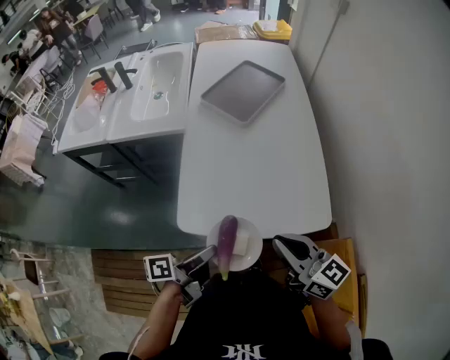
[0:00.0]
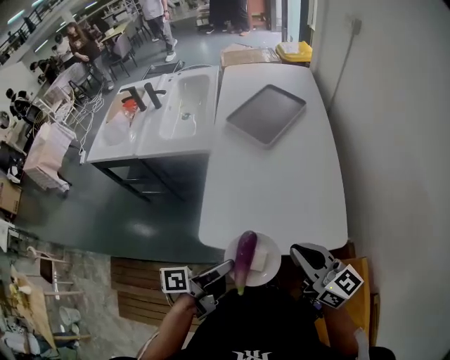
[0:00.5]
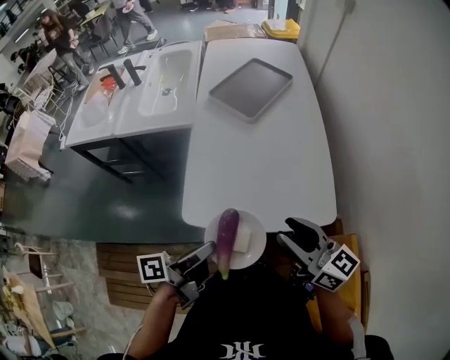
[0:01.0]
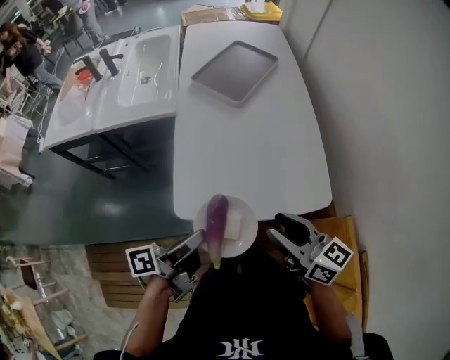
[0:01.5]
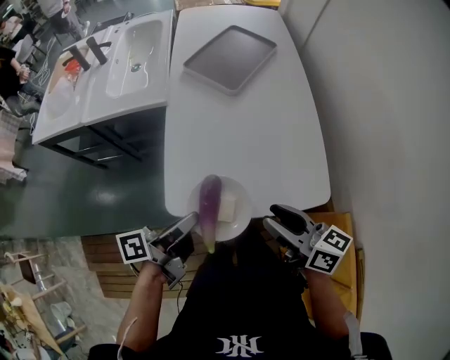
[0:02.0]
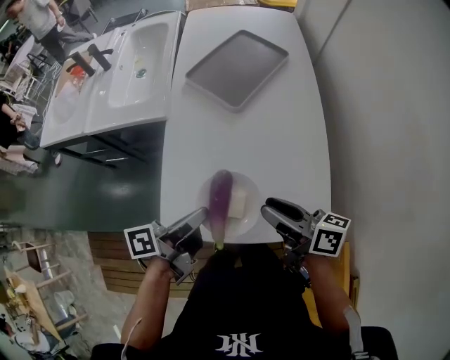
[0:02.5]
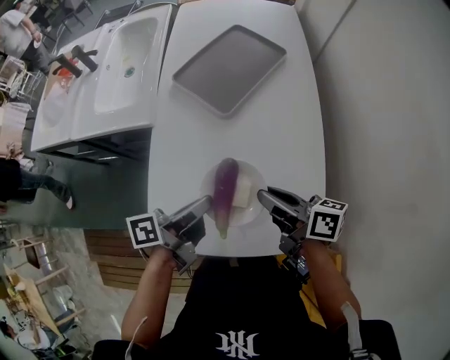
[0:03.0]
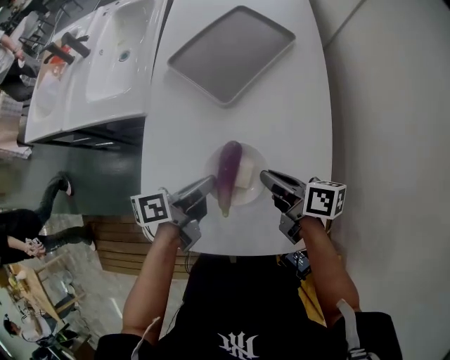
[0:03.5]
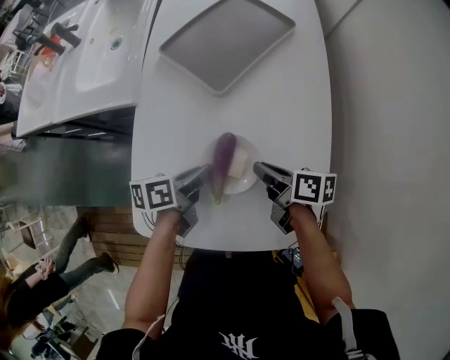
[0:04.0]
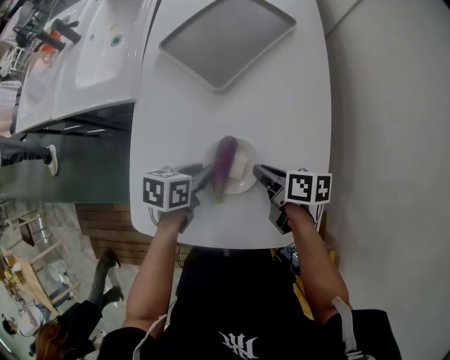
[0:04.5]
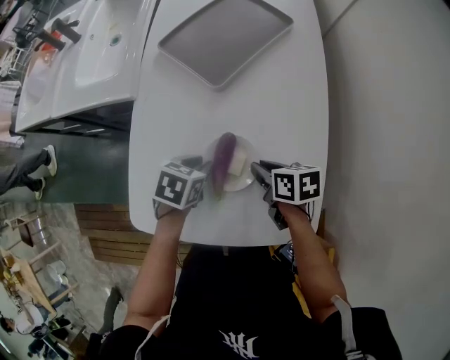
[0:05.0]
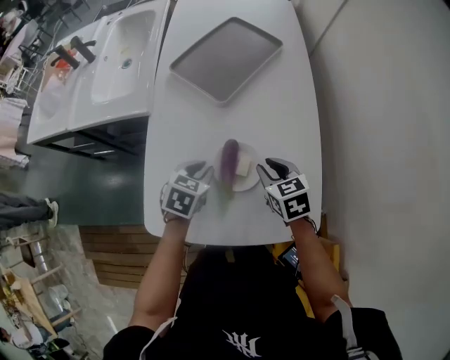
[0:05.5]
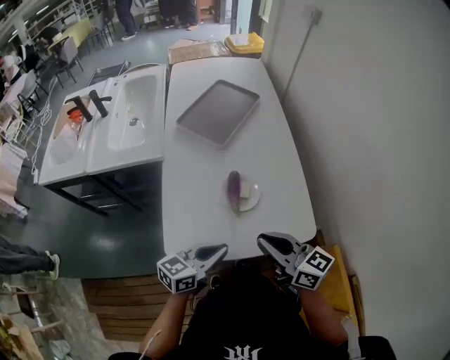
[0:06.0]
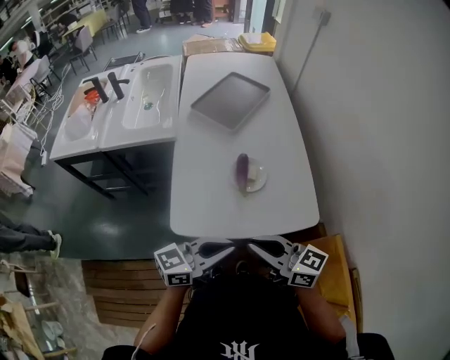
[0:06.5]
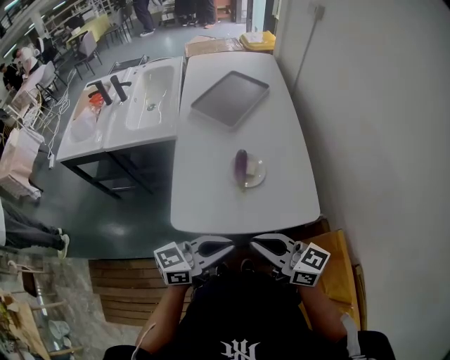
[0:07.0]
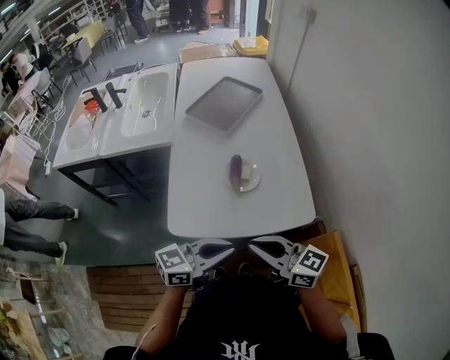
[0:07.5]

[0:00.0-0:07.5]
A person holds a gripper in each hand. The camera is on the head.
0:00.0 to 0:02.0: The right gripper rotates about 20 degrees, and opens; the left gripper shifts by approximately 5 cm.
0:02.0 to 0:04.0: The left gripper is displaced forward, downward and to the right by some 30 cm, and swivels some 30 degrees. Meanwhile the right gripper is displaced forward and downward by about 30 cm, turns by some 30 degrees, and closes its fingers.
0:04.0 to 0:05.5: The right gripper twists some 50 degrees counterclockwise, seen from behind. Meanwhile the left gripper rolls clockwise, seen from behind, by about 50 degrees.
0:05.5 to 0:07.5: The right gripper changes place by some 35 cm, points its fingers some 40 degrees further upward, and closes up. The left gripper shifts by about 35 cm, and tips its fingers upward by some 50 degrees.

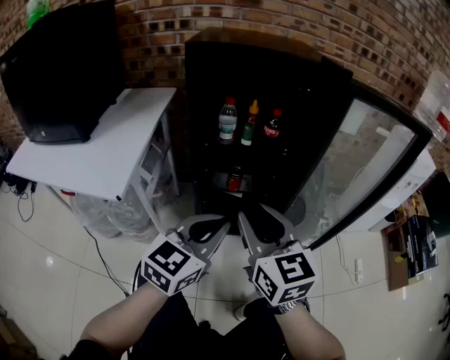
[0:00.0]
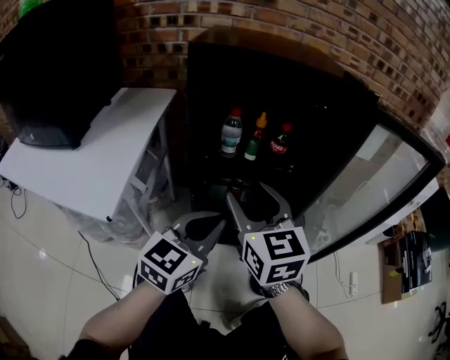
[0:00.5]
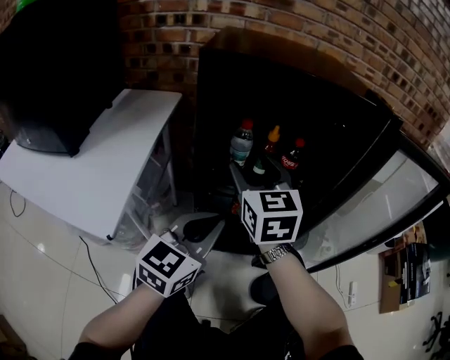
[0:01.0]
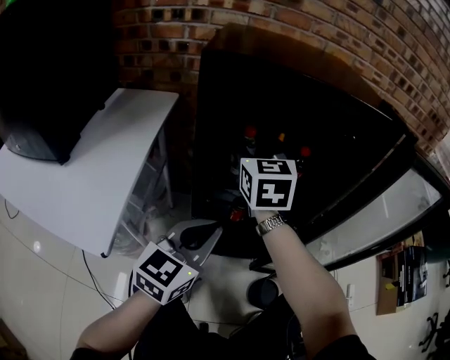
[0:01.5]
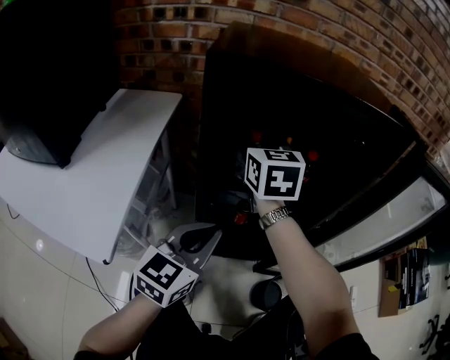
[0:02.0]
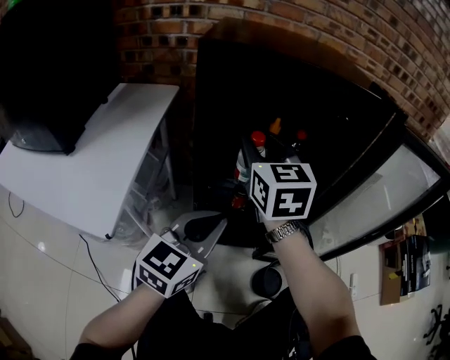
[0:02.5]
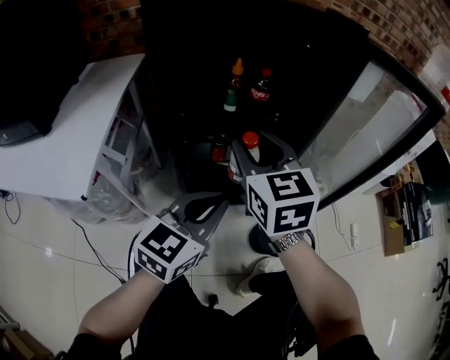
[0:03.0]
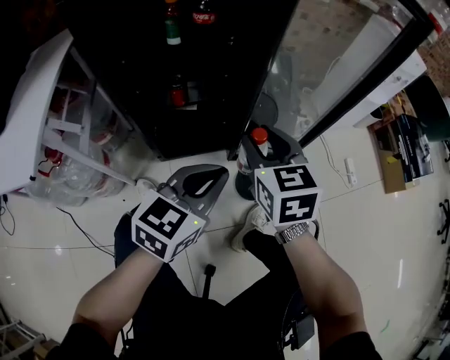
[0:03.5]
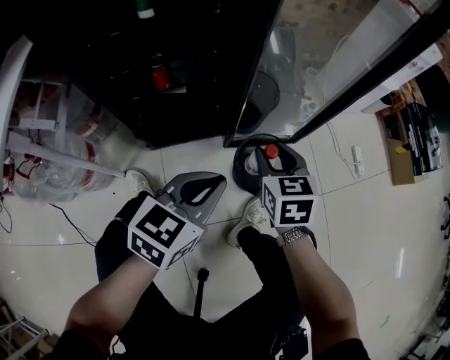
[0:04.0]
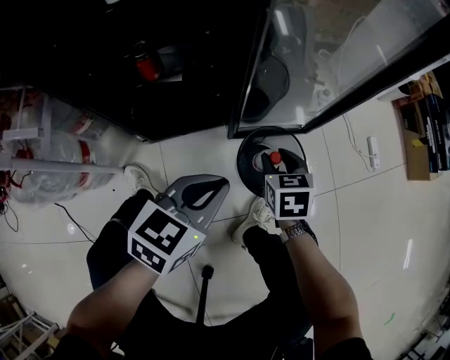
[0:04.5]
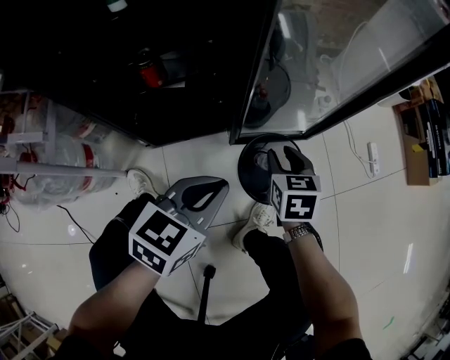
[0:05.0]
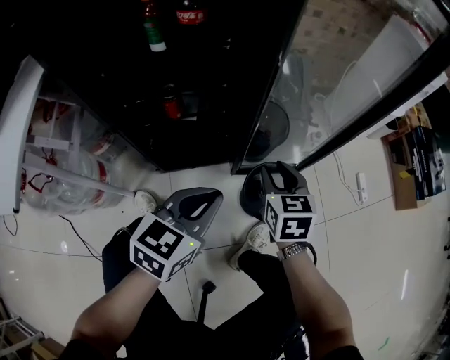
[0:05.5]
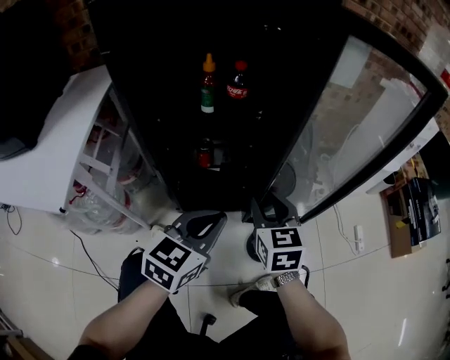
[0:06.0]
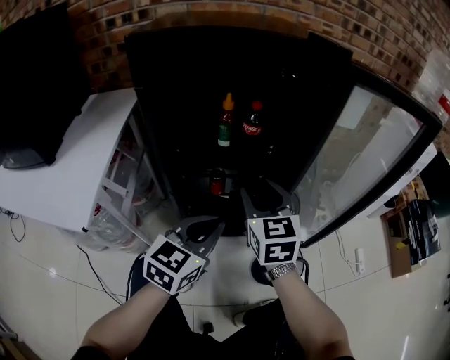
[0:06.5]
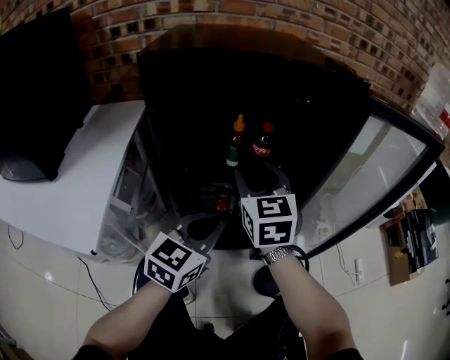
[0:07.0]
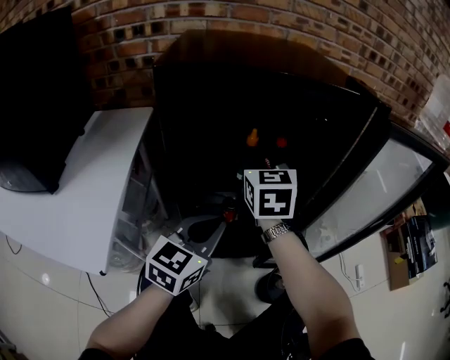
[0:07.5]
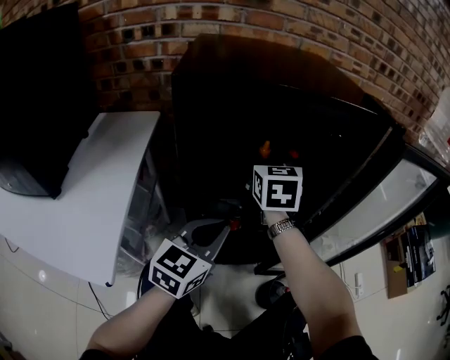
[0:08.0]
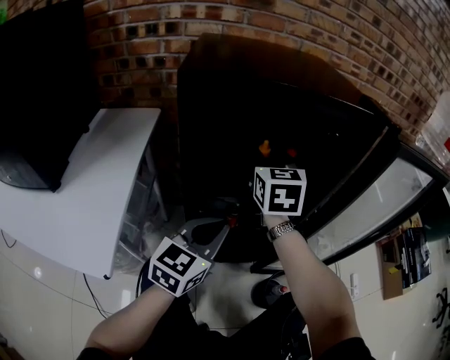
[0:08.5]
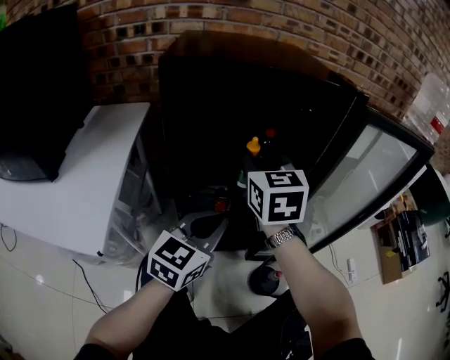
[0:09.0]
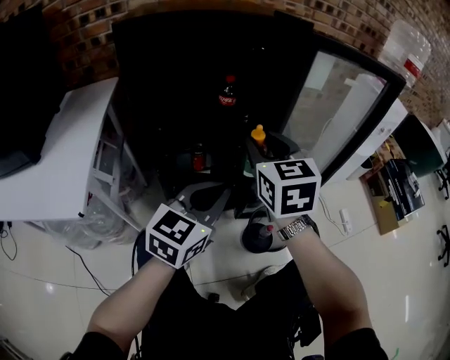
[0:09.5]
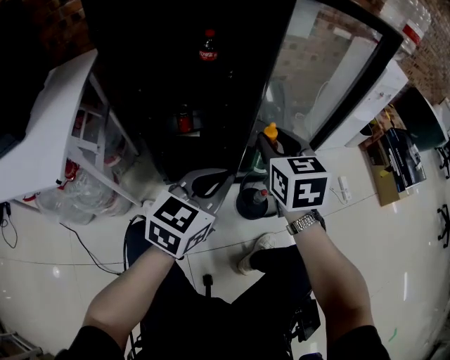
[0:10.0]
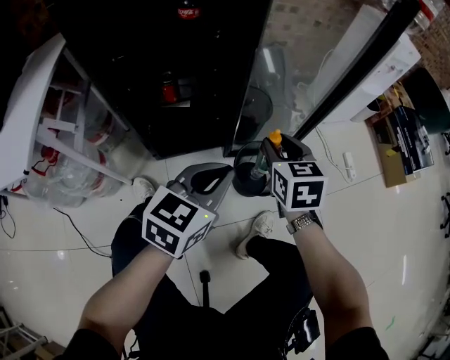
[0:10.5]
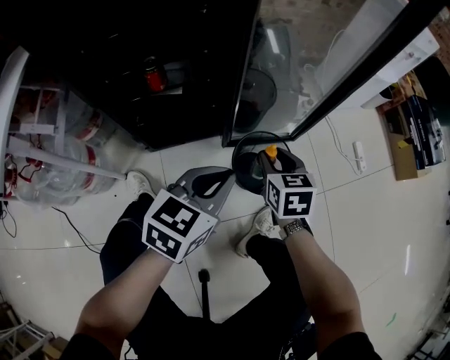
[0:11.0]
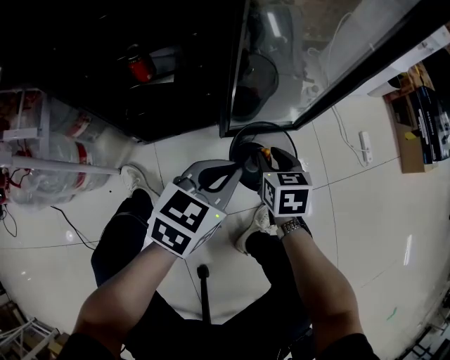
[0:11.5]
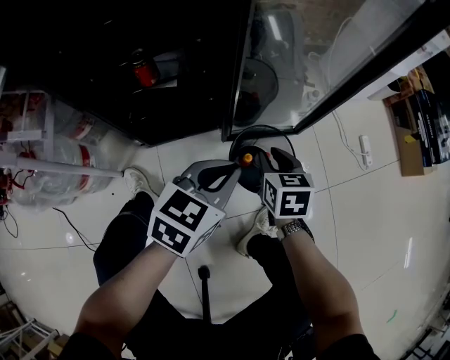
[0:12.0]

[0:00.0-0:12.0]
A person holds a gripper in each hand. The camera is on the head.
0:00.0 to 0:02.0: The left gripper heads forward and to the left, covering some 20 cm, while the right gripper goes about 35 cm forward.
0:02.0 to 0:04.0: The left gripper shifts roughly 30 cm to the right and downward, and rotates about 30 degrees. Meanwhile the right gripper moves to the right, downward and backward, roughly 60 cm, and rotates roughly 30 degrees.
0:04.0 to 0:06.0: The two grippers go some 15 cm upward and to the left.
0:06.0 to 0:08.0: The left gripper moves to the left, forward and upward, approximately 20 cm. The right gripper moves forward, to the left and upward, some 35 cm.
0:08.0 to 0:10.0: Both grippers move to the right and backward, some 30 cm.
0:10.0 to 0:12.0: The left gripper goes some 20 cm downward; the right gripper moves downward, approximately 30 cm, and changes its angle by approximately 20 degrees.

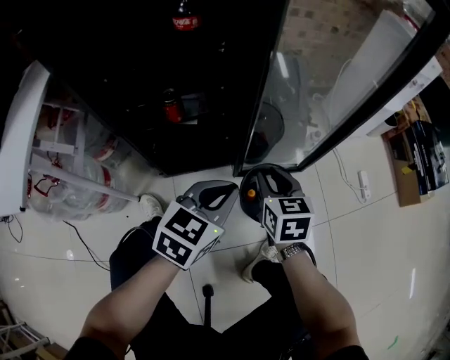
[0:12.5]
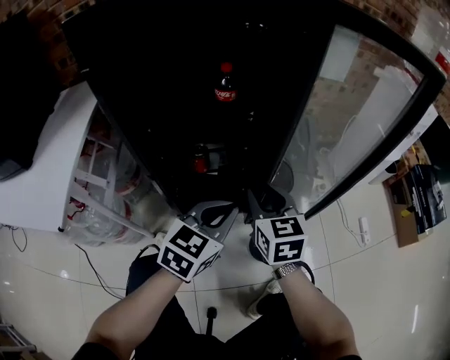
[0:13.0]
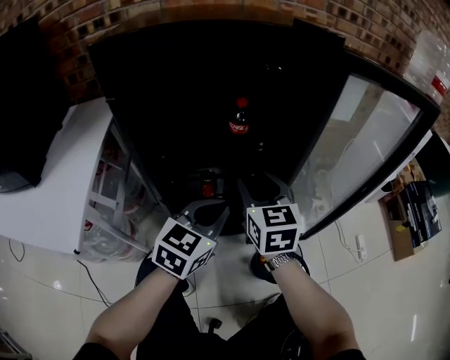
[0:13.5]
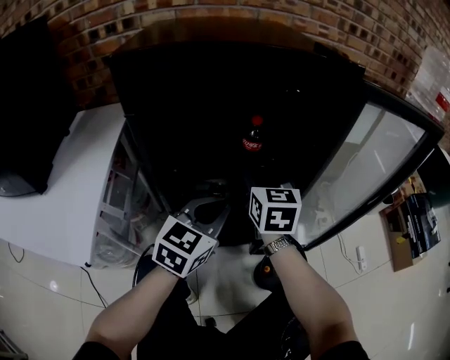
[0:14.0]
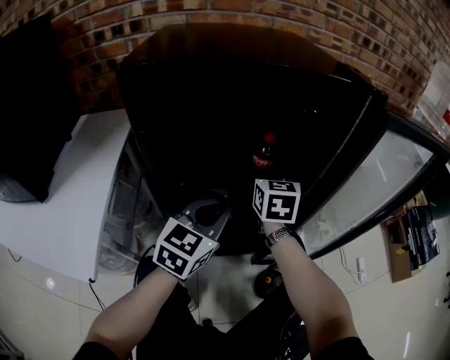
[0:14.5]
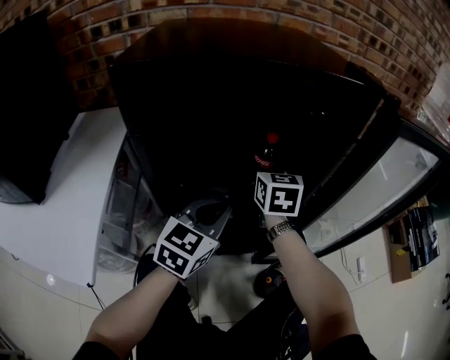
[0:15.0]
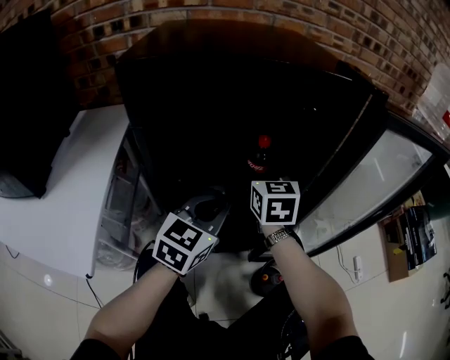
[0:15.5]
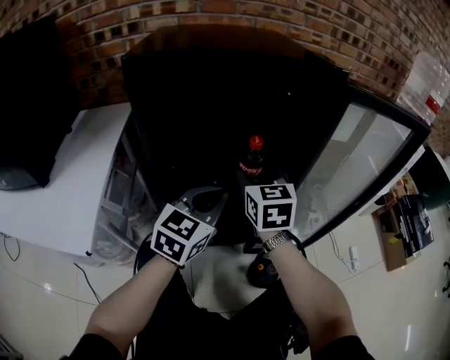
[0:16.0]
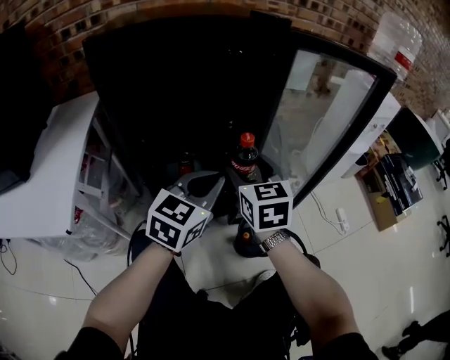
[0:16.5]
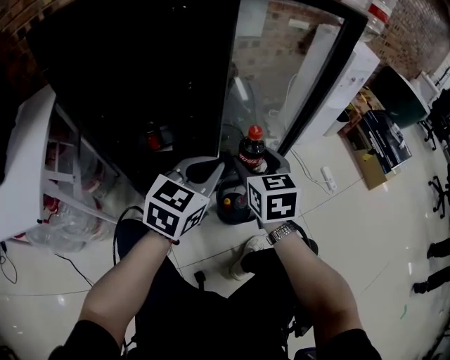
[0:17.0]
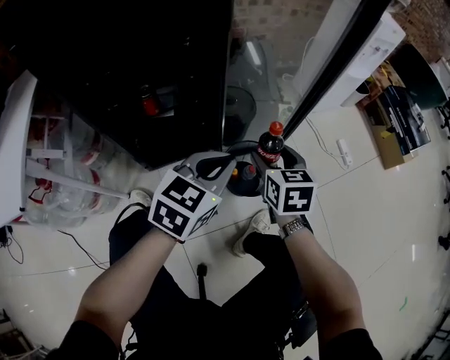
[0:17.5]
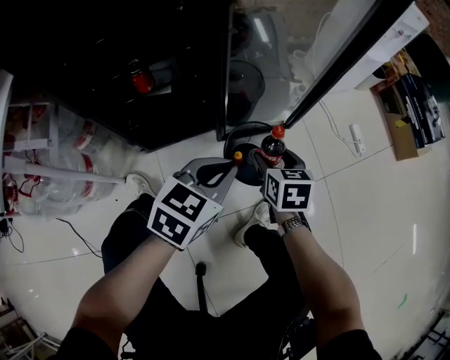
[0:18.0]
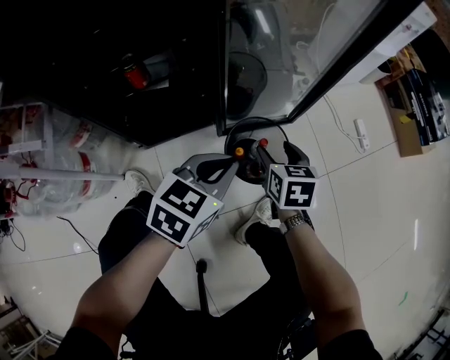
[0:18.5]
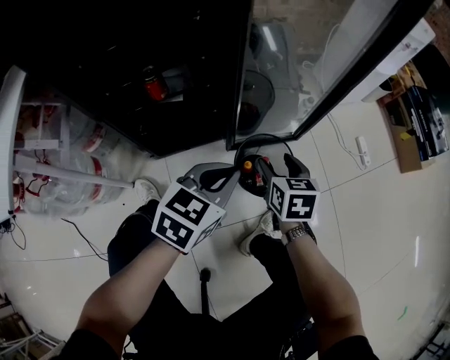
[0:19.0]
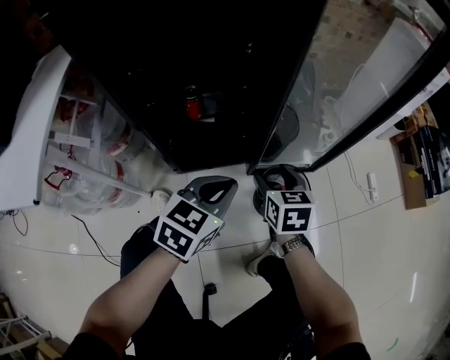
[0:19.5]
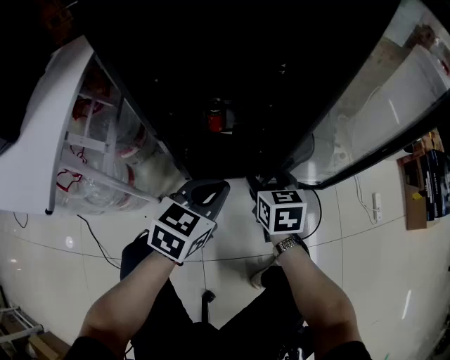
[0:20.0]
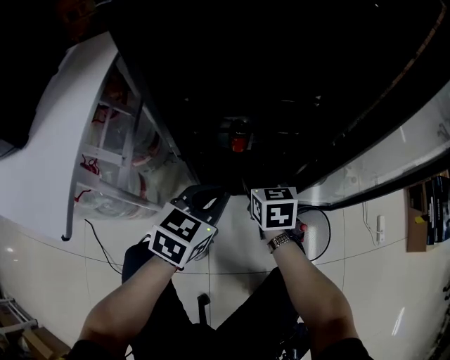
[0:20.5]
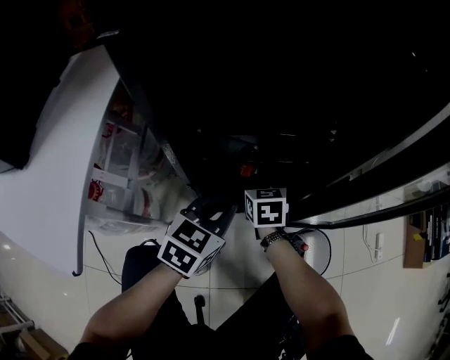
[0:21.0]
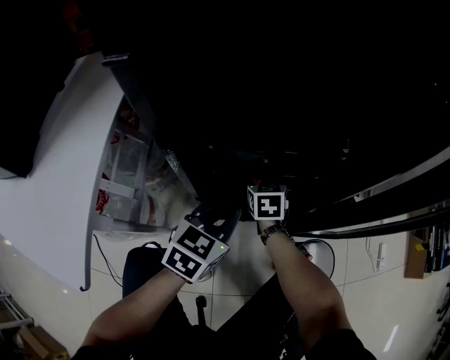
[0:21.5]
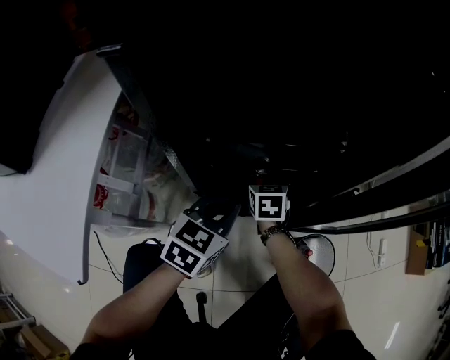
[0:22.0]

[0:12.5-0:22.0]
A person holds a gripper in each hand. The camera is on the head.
0:12.5 to 0:14.5: The right gripper heads upward, to the left and forward, covering roughly 40 cm, and opens up. The left gripper shifts about 30 cm to the left, upward and forward.
0:14.5 to 0:16.5: The left gripper shifts roughly 15 cm to the right and backward; the right gripper travels backward and to the right by approximately 20 cm.
0:16.5 to 0:18.0: The grippers both shift downward and to the right by some 30 cm. The left gripper rotates approximately 20 degrees. The right gripper rotates some 30 degrees.
0:18.0 to 0:20.0: The grippers both shift to the left by some 20 cm.
0:20.0 to 0:22.0: The right gripper is displaced forward and to the left by about 20 cm, while the left gripper moves forward and to the left, about 15 cm.
